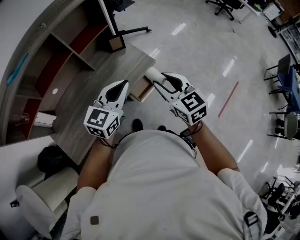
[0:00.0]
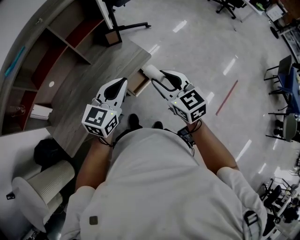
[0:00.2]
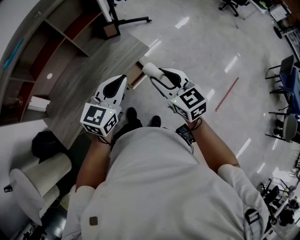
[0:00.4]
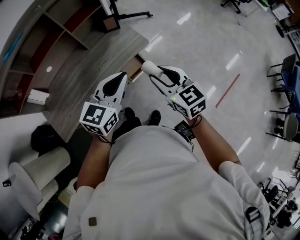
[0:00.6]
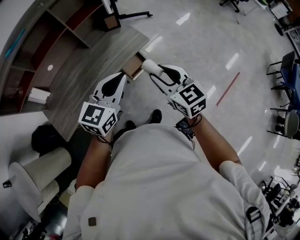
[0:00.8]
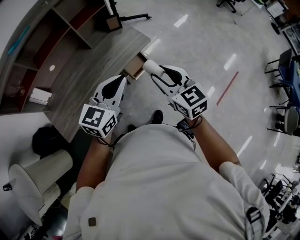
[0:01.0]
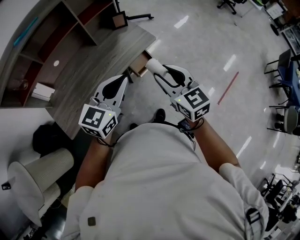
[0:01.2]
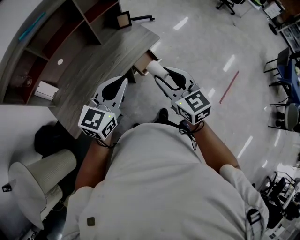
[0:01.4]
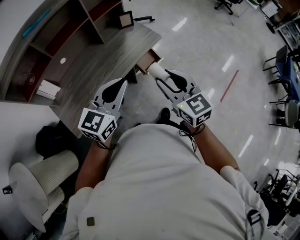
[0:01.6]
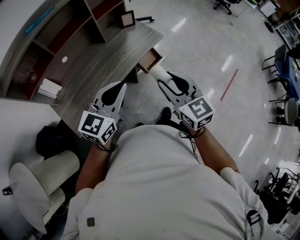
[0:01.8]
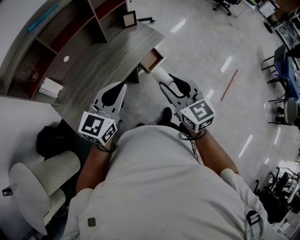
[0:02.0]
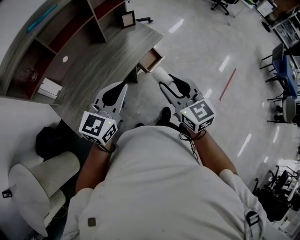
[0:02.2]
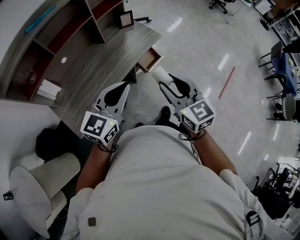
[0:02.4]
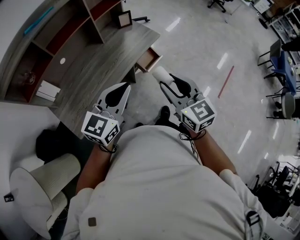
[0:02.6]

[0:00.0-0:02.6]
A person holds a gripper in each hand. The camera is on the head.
0:00.0 to 0:01.2: Both grippers travel together backward, approximately 15 cm.
0:01.2 to 0:02.6: The grippers both shift backward and to the left by roughly 15 cm.

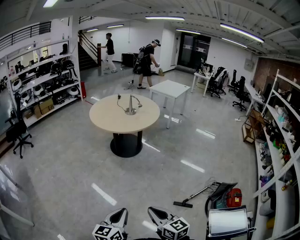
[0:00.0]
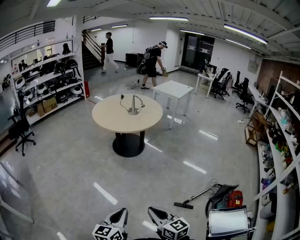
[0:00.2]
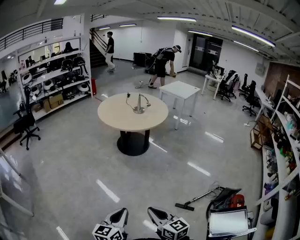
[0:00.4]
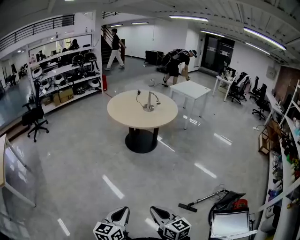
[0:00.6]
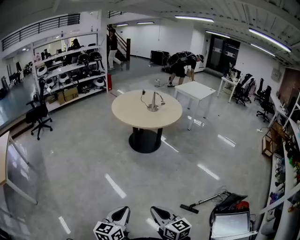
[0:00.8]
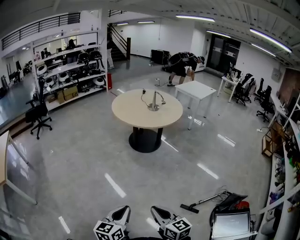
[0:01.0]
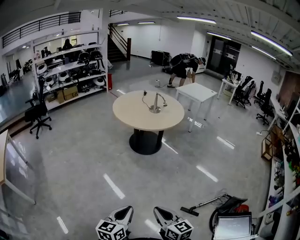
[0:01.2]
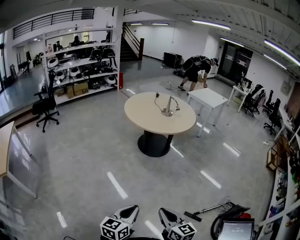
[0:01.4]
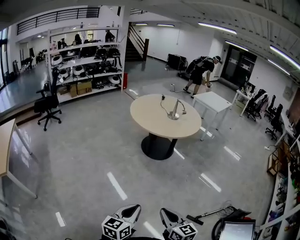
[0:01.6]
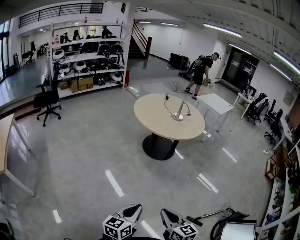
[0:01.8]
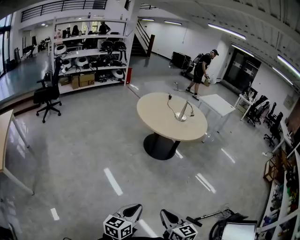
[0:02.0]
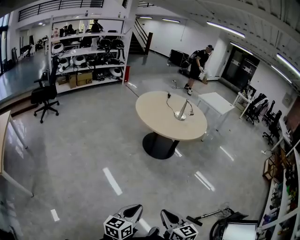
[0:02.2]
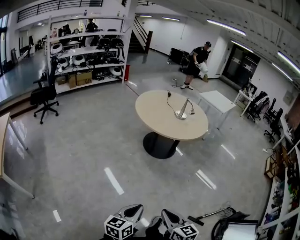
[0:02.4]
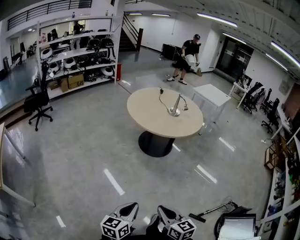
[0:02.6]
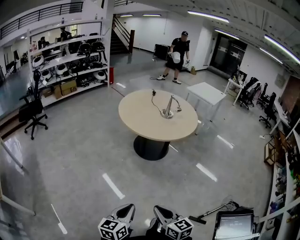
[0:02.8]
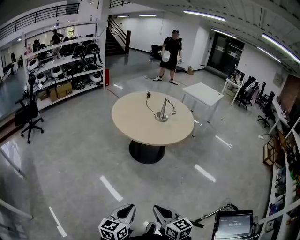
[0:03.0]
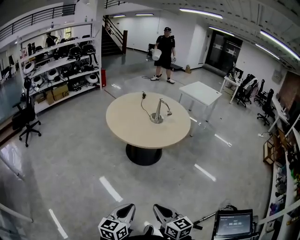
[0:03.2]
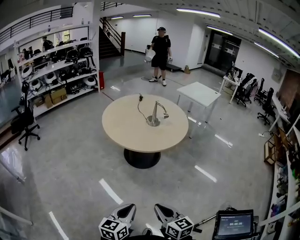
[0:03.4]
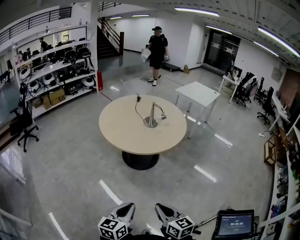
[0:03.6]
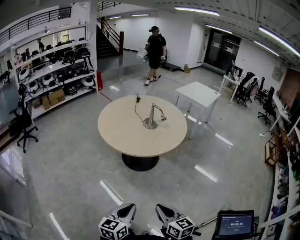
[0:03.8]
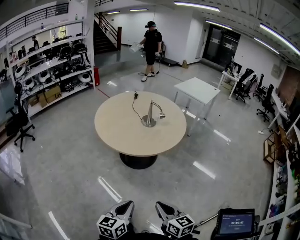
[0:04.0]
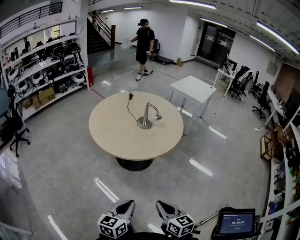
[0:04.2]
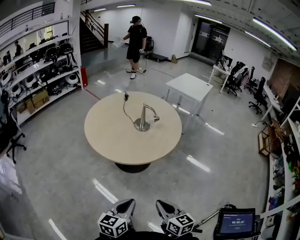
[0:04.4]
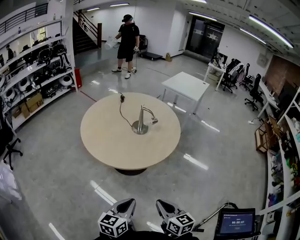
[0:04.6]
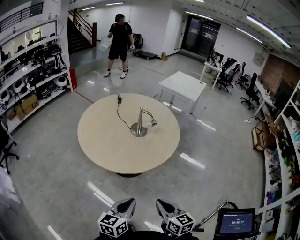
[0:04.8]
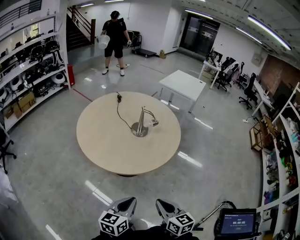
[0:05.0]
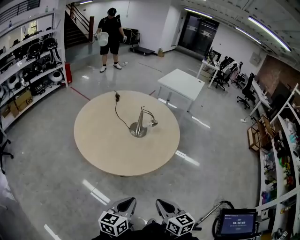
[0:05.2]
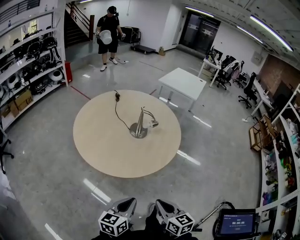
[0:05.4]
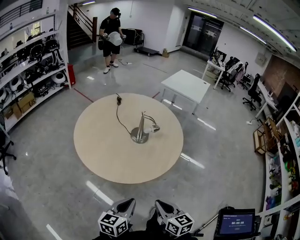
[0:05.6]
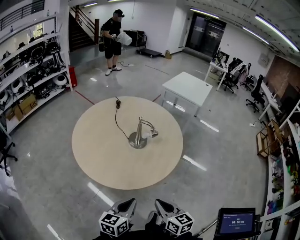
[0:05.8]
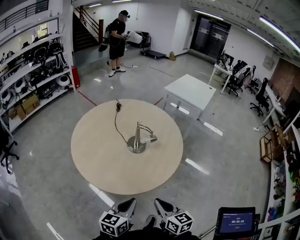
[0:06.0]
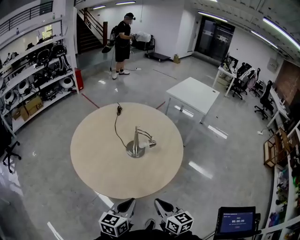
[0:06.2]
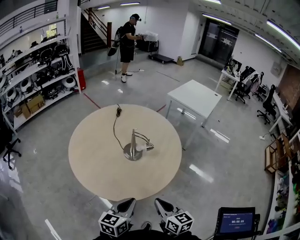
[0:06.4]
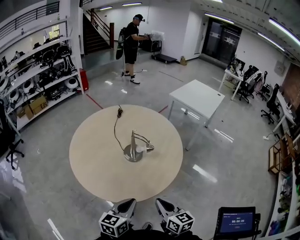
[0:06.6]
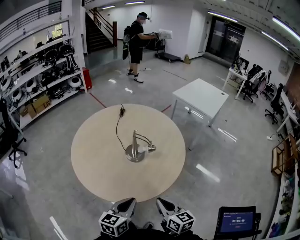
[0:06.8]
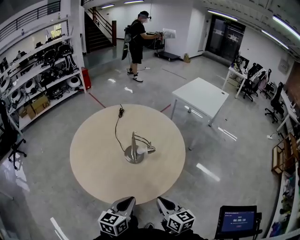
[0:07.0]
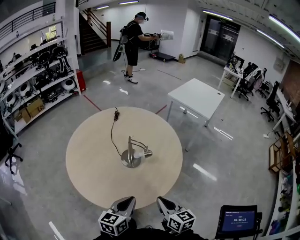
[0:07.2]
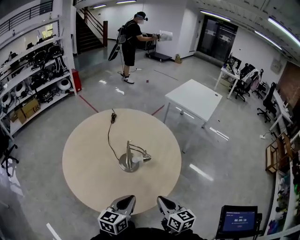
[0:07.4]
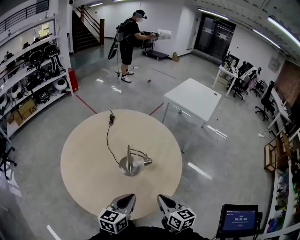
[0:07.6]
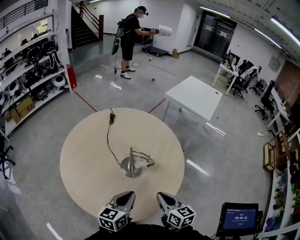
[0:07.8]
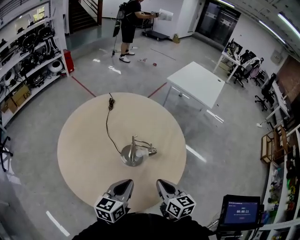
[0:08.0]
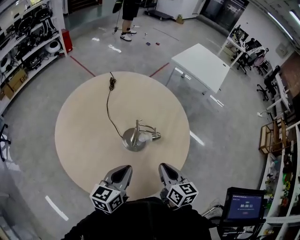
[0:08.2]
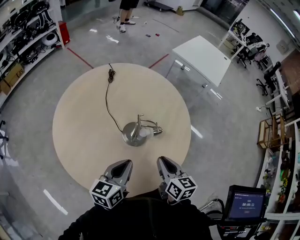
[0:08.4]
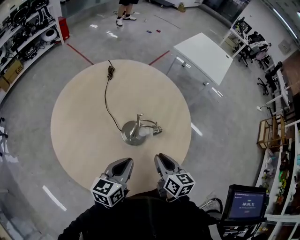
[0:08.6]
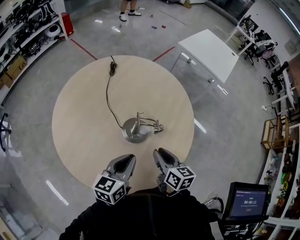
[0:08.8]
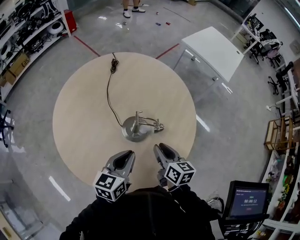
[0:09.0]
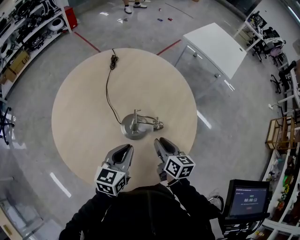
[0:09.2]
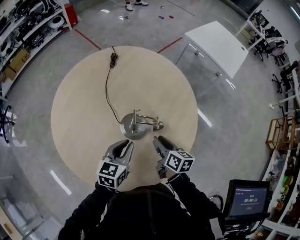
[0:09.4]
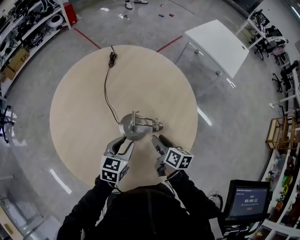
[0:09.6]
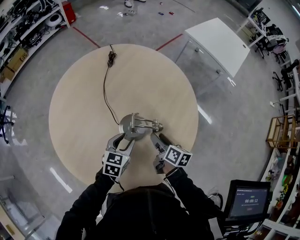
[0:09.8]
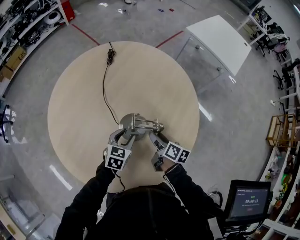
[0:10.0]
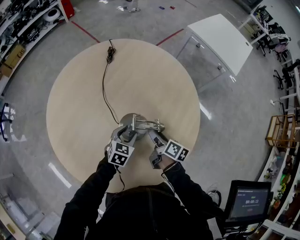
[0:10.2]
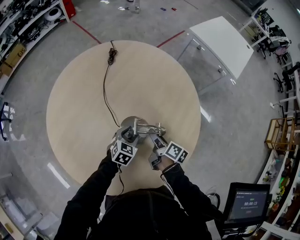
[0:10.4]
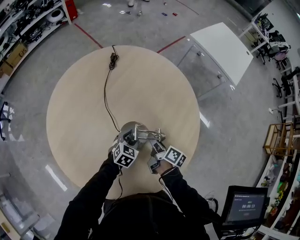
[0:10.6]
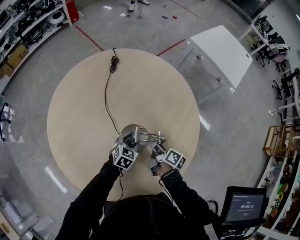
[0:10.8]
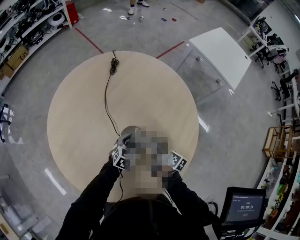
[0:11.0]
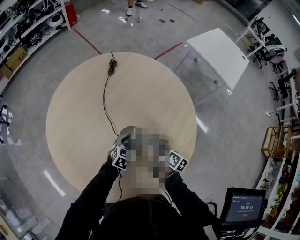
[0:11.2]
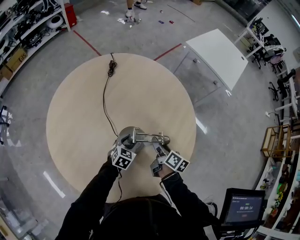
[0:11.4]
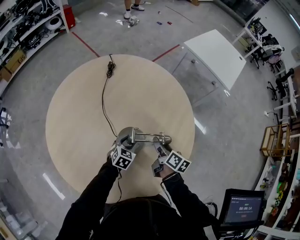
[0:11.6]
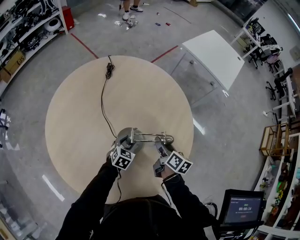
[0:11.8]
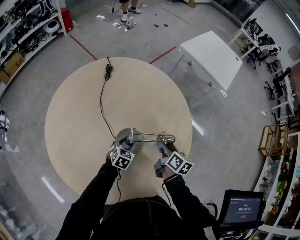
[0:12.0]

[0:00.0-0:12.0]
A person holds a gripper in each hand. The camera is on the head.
0:00.0 to 0:01.6: The right gripper travels forward and to the left by some 10 cm. The left gripper travels to the left and forward by about 10 cm.
0:01.6 to 0:03.0: The two grippers go about 20 cm forward.
0:03.0 to 0:04.4: The right gripper goes some 25 cm forward and to the right, while the left gripper travels forward by about 25 cm.
0:04.4 to 0:06.0: Both grippers move forward, roughly 25 cm.
0:06.0 to 0:07.6: Both grippers move forward, about 20 cm.
0:07.6 to 0:09.0: The left gripper goes some 10 cm forward. The right gripper heads forward and downward, covering about 15 cm.
0:09.0 to 0:10.4: Both grippers travel together downward and forward, some 20 cm. The left gripper swivels approximately 30 degrees, and opens up; the right gripper changes its angle by approximately 40 degrees, and opens up.
0:10.4 to 0:12.0: The right gripper is displaced upward and to the right by roughly 10 cm, and rotates approximately 20 degrees.

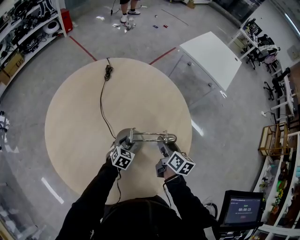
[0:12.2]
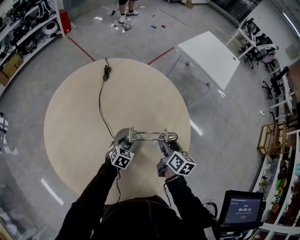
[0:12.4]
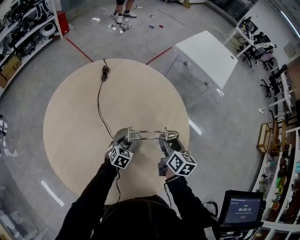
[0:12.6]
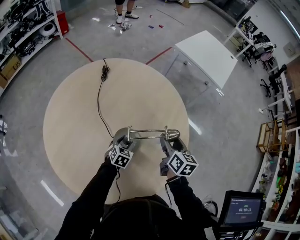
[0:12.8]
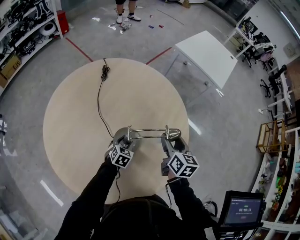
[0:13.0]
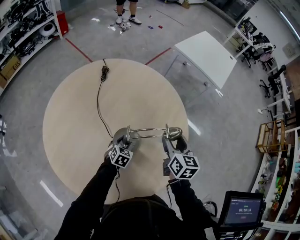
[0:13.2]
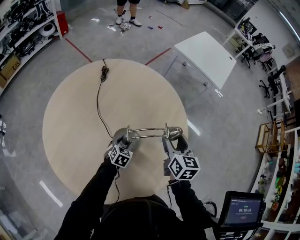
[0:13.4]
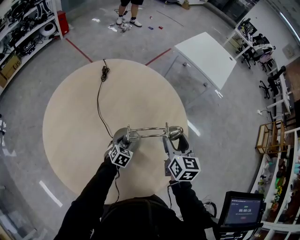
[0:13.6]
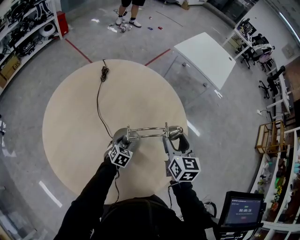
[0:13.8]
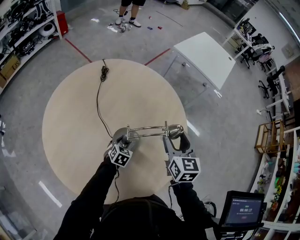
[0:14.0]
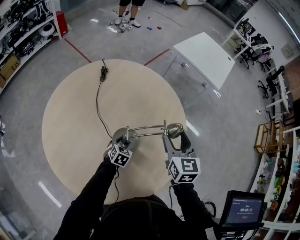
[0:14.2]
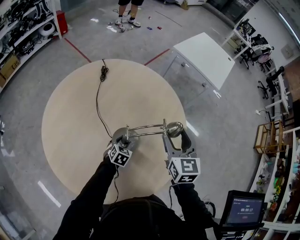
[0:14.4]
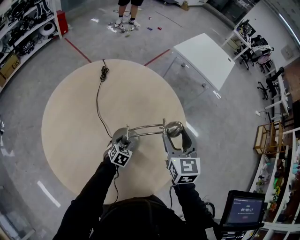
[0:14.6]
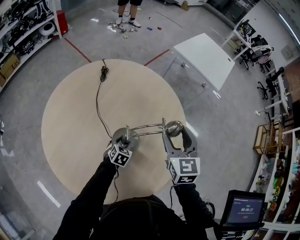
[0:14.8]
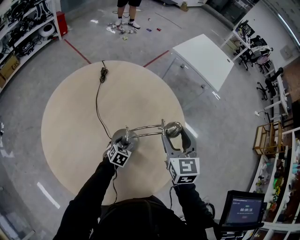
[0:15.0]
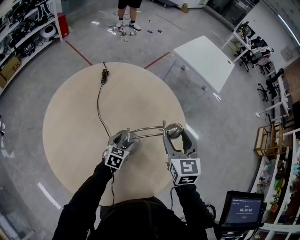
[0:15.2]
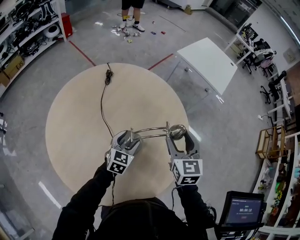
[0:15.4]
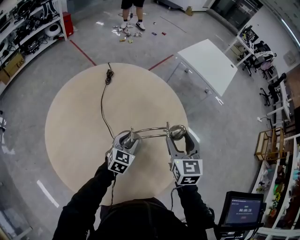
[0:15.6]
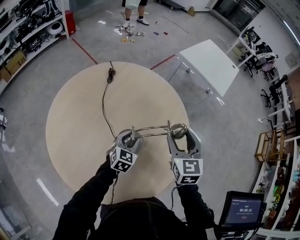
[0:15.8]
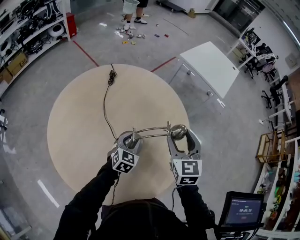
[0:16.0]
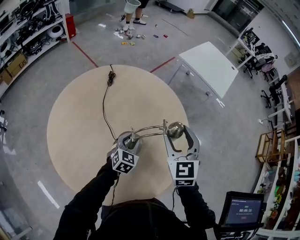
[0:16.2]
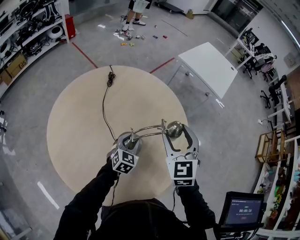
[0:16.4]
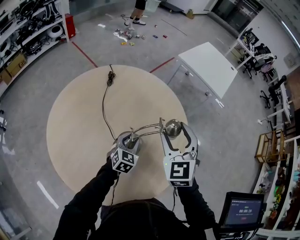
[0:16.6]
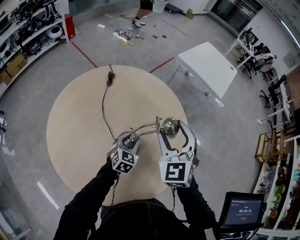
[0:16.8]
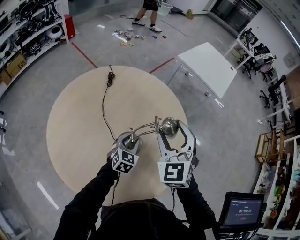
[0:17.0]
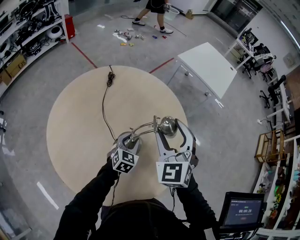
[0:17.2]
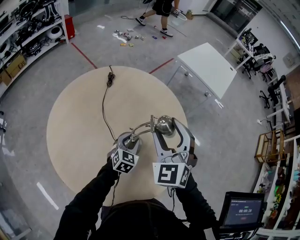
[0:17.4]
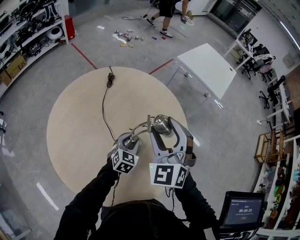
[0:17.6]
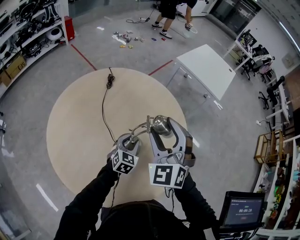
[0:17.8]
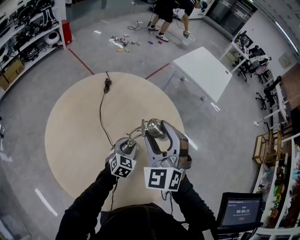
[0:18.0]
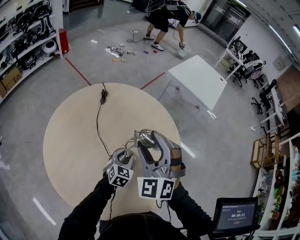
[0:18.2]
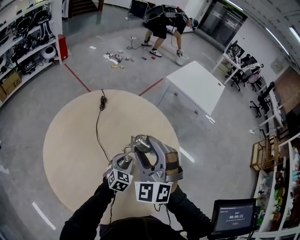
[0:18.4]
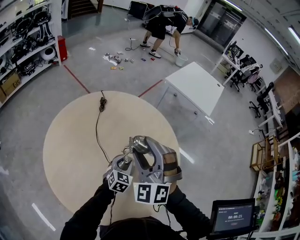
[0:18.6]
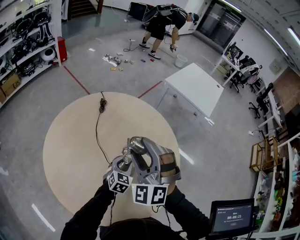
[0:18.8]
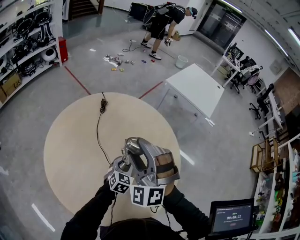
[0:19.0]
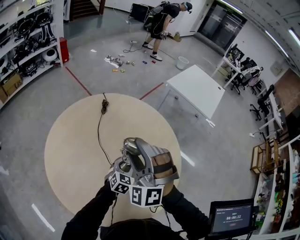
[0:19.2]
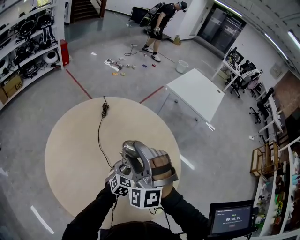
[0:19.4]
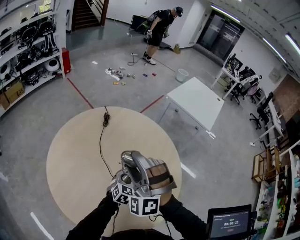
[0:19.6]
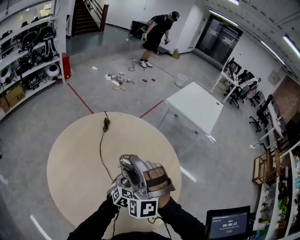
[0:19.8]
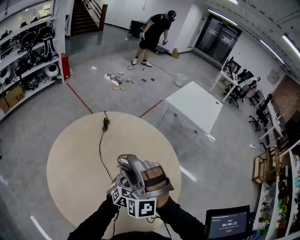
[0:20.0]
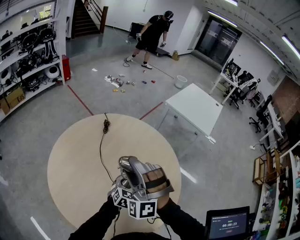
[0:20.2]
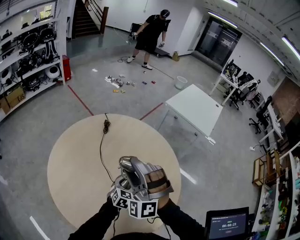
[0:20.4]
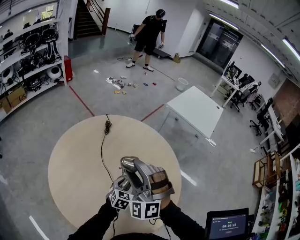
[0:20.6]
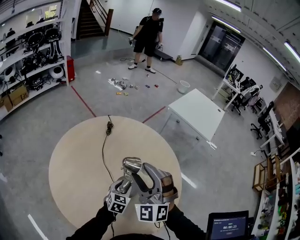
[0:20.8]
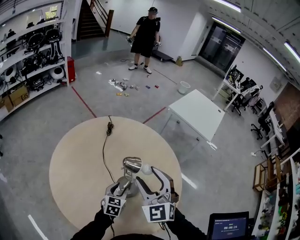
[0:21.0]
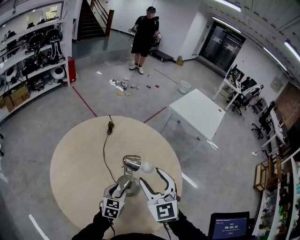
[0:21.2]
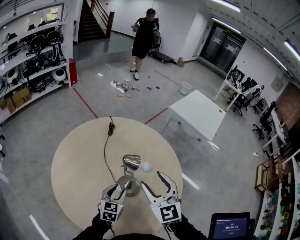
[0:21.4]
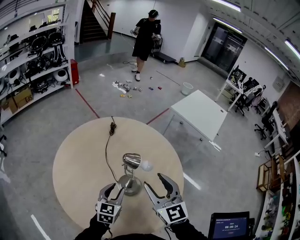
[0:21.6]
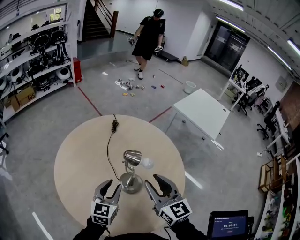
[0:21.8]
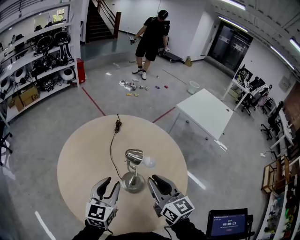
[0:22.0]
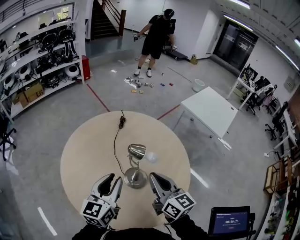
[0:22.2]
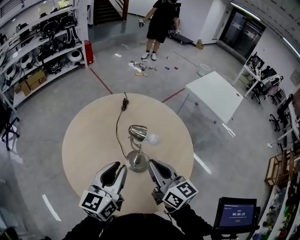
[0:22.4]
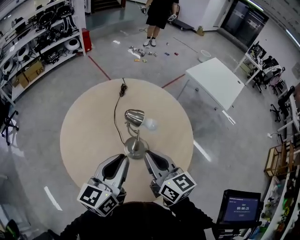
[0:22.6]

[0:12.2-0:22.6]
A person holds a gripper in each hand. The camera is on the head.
0:12.2 to 0:13.6: The right gripper goes about 10 cm upward, and turns by roughly 30 degrees.
0:13.6 to 0:15.2: The left gripper goes about 5 cm upward.
0:15.2 to 0:16.6: The right gripper changes place by roughly 5 cm, and rotates roughly 20 degrees. The left gripper is displaced upward by about 5 cm, and closes its fingers.
0:16.6 to 0:18.2: The right gripper is displaced to the left by roughly 5 cm, and swivels roughly 30 degrees.
0:18.2 to 0:19.6: The right gripper goes approximately 5 cm to the left, and swivels some 20 degrees.
0:19.6 to 0:21.2: The left gripper moves to the left and backward, approximately 10 cm, while the right gripper heads to the right, covering approximately 5 cm, and rotates around the line of its fingers by about 50 degrees, clockwise from behind.
0:21.2 to 0:22.6: The right gripper travels backward by roughly 5 cm, twists about 50 degrees clockwise, seen from behind, and closes. Meanwhile the left gripper goes approximately 25 cm upward, swivels roughly 30 degrees, and closes.
